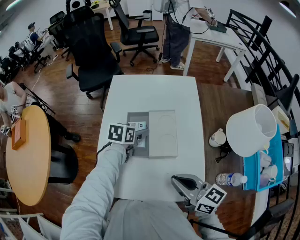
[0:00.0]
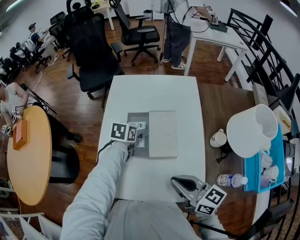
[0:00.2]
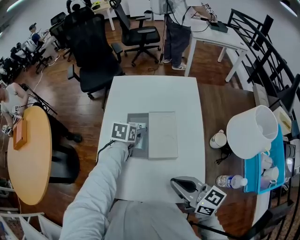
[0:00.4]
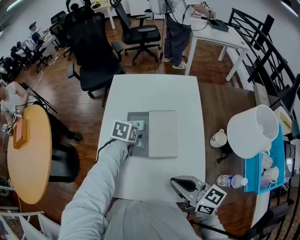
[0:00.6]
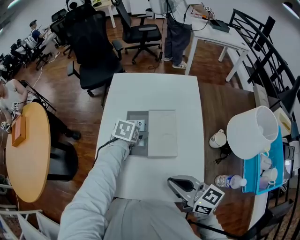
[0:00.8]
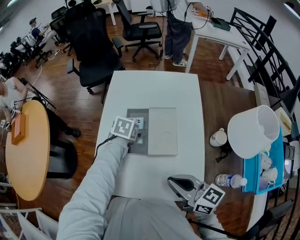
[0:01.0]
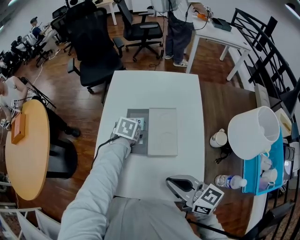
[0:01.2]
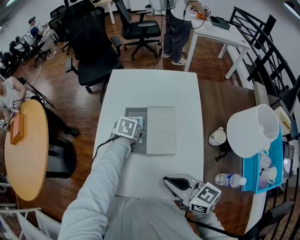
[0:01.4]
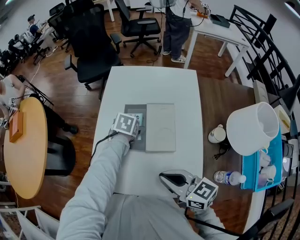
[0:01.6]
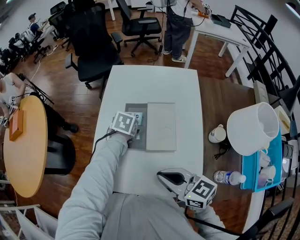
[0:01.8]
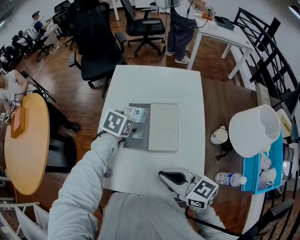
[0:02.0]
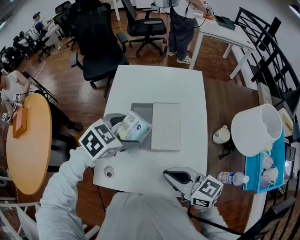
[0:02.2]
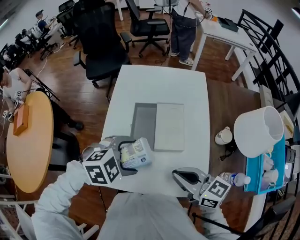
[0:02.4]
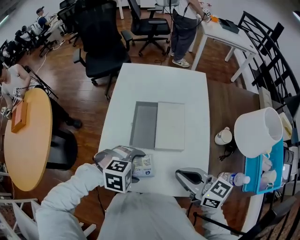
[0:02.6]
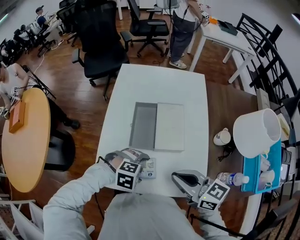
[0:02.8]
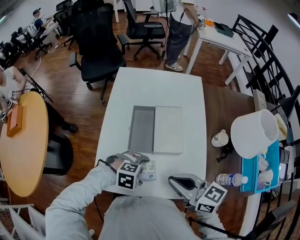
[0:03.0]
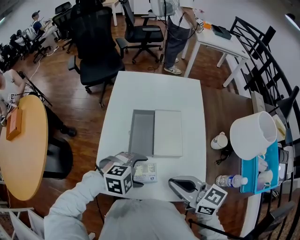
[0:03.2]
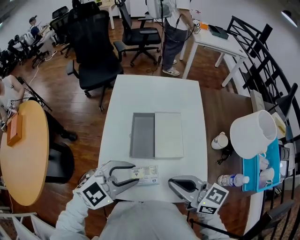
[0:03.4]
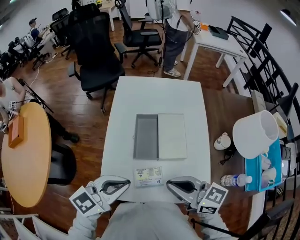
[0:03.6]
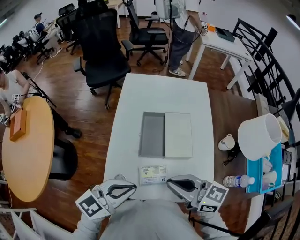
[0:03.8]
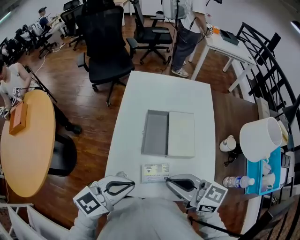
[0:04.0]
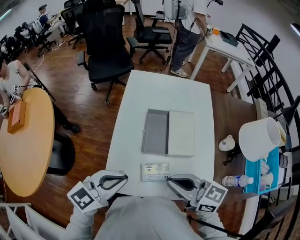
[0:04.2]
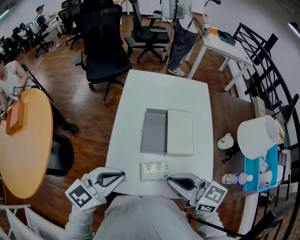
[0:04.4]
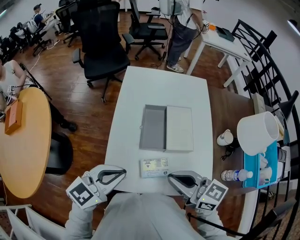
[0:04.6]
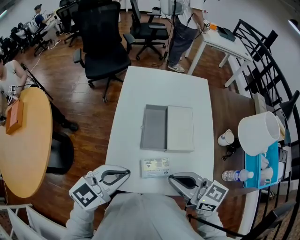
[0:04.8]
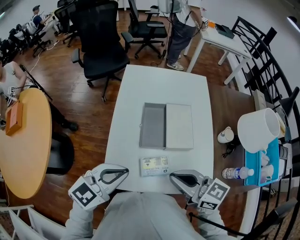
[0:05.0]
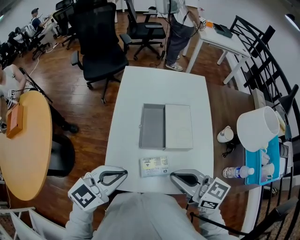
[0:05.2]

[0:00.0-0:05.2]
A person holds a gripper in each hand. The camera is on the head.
0:01.8 to 0:03.4: The left gripper goes up and down, approximately 20 cm each way, reversing 2 times, points its fingers approximately 40 degrees further upward, and closes.
0:03.4 to 0:05.2: The left gripper travels to the left by roughly 10 cm, and closes its fingers. The right gripper moves some 5 cm.

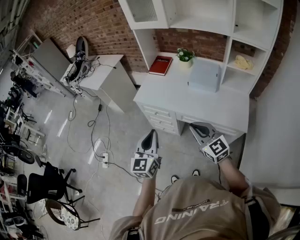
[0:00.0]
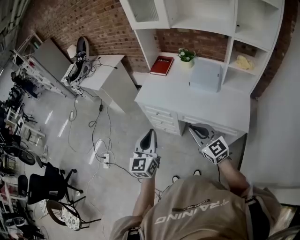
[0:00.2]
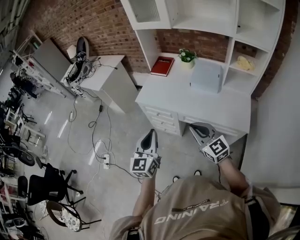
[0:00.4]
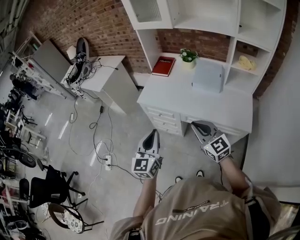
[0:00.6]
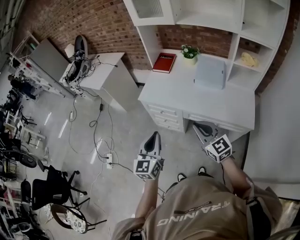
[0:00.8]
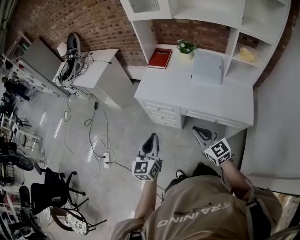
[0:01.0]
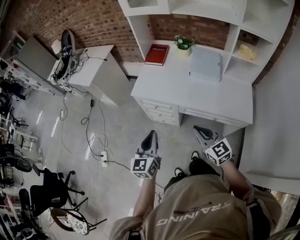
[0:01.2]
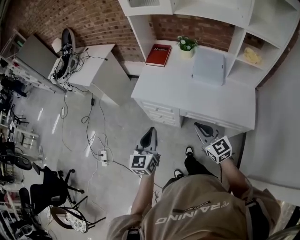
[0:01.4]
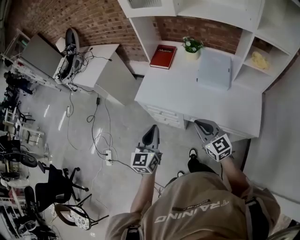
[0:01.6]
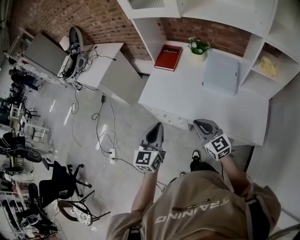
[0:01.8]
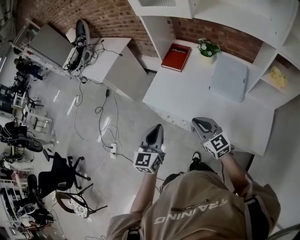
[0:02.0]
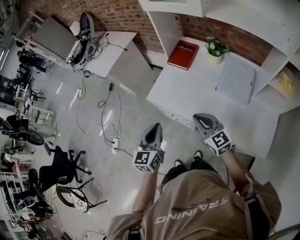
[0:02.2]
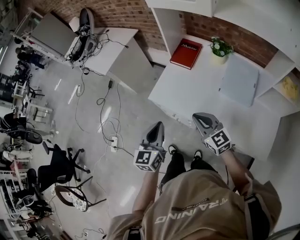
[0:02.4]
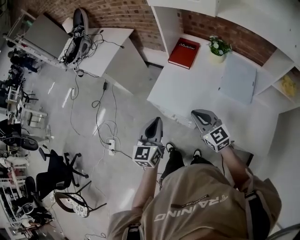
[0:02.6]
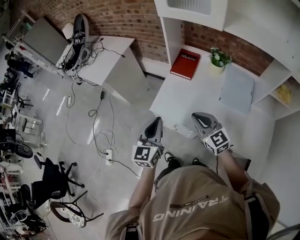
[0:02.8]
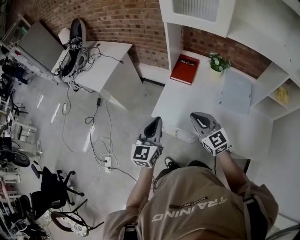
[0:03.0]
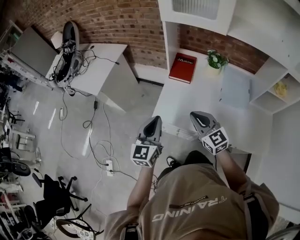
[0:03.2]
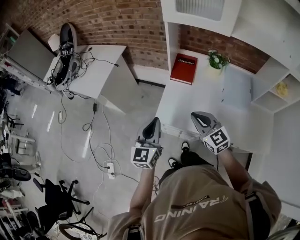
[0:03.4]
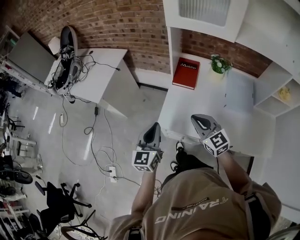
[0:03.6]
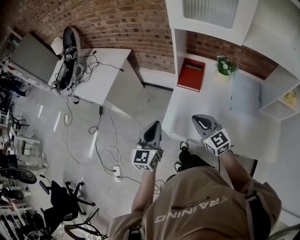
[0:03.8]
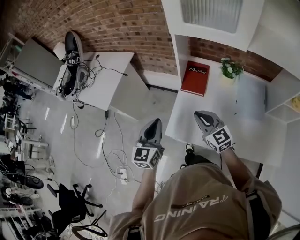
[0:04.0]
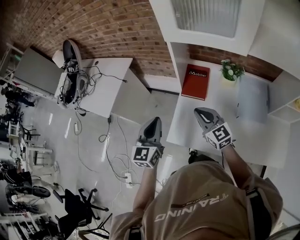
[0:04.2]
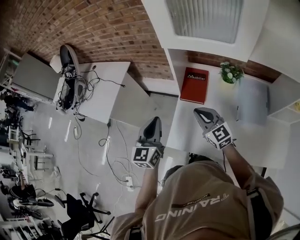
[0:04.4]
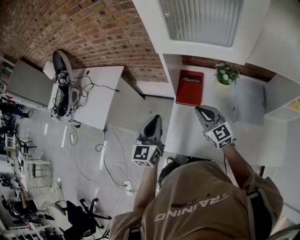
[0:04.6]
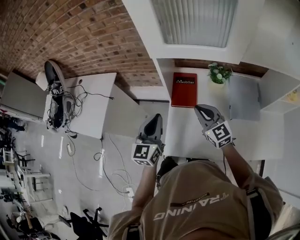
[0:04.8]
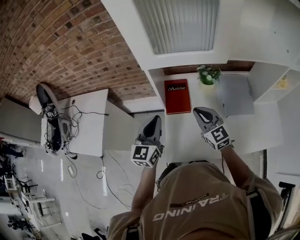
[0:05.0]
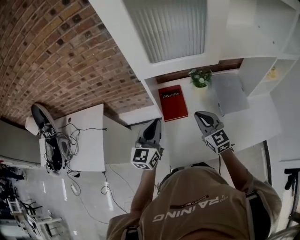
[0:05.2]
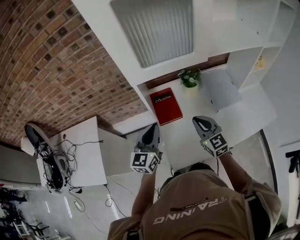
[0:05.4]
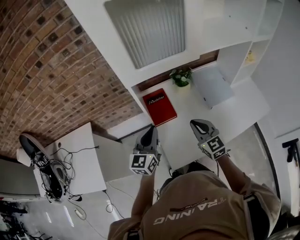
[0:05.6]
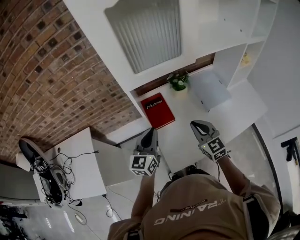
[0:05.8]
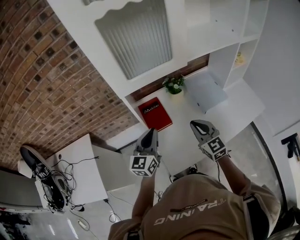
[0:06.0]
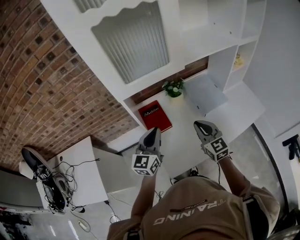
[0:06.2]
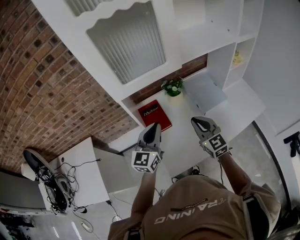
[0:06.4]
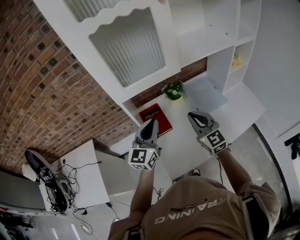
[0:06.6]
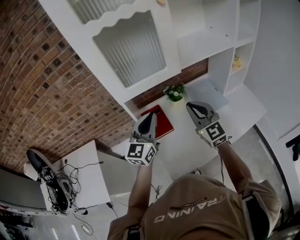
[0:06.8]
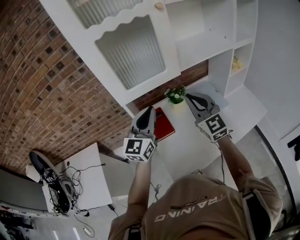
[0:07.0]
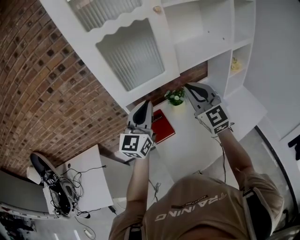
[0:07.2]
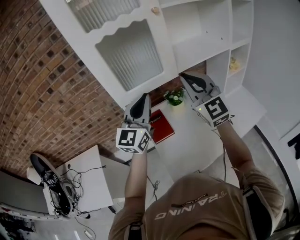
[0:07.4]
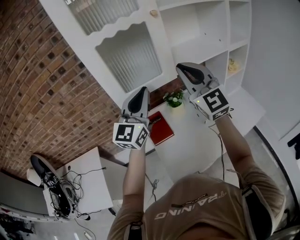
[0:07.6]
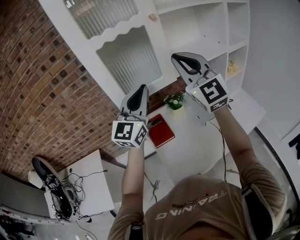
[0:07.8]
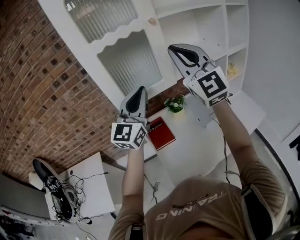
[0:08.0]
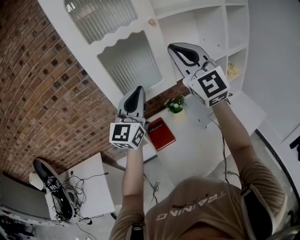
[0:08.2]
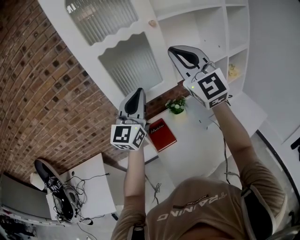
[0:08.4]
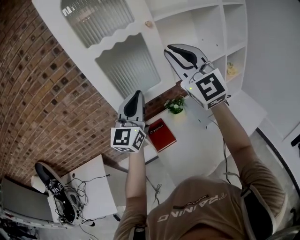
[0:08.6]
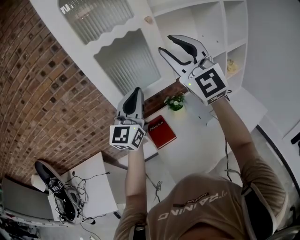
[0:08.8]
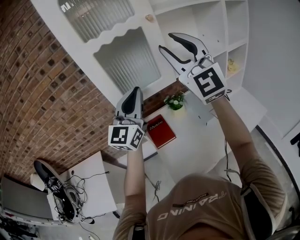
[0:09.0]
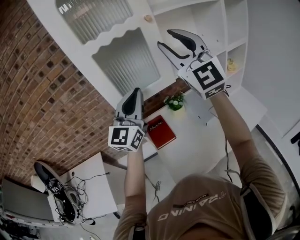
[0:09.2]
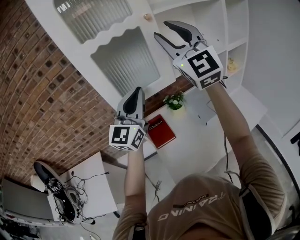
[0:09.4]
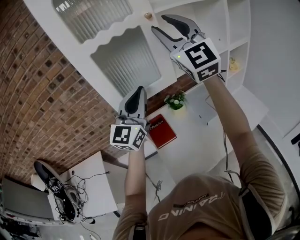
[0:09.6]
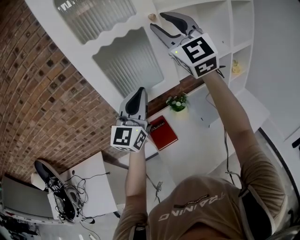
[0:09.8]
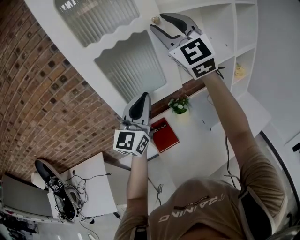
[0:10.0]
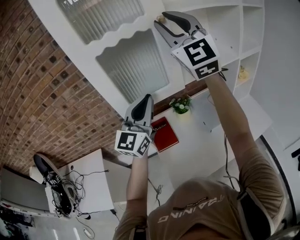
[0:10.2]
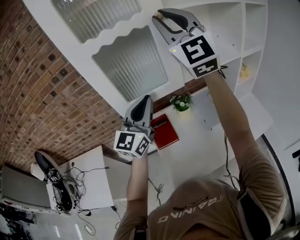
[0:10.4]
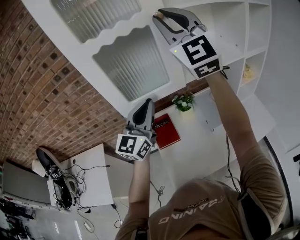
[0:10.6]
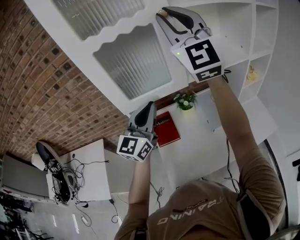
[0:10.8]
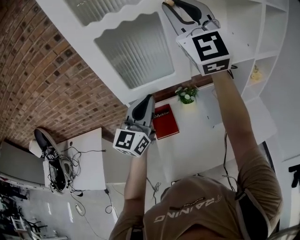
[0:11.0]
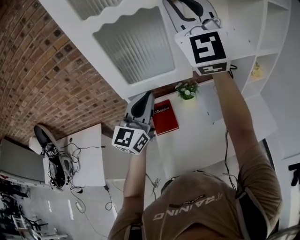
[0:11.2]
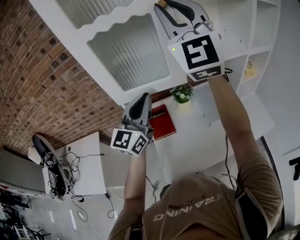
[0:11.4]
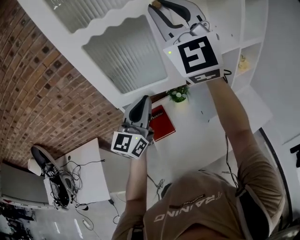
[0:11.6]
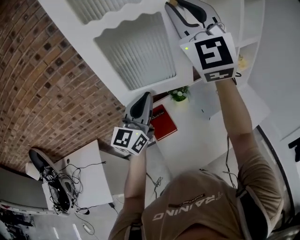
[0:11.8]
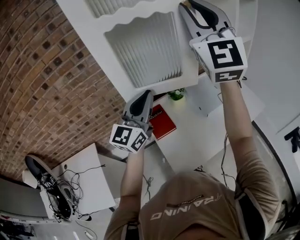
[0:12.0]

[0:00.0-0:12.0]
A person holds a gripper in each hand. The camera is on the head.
0:00.0 to 0:01.6: The right gripper goes roughly 15 cm forward and downward. Meanwhile the left gripper moves forward, some 15 cm.
0:01.6 to 0:03.0: Both grippers travel together forward and to the left, roughly 25 cm.
0:03.0 to 0:04.4: Both grippers move forward, about 25 cm.
0:04.4 to 0:06.0: The right gripper moves some 10 cm, and swivels roughly 50 degrees, while the left gripper changes place by roughly 10 cm, and changes its angle by roughly 40 degrees.
0:06.0 to 0:07.6: The two grippers go about 30 cm upward. The right gripper changes its angle by approximately 40 degrees, while the left gripper changes its angle by about 30 degrees.
0:07.6 to 0:09.0: The right gripper shifts about 10 cm upward, and opens up.
0:09.0 to 0:10.4: The right gripper heads forward and upward, covering some 10 cm; the left gripper moves approximately 5 cm.
0:10.4 to 0:12.0: The left gripper changes place by roughly 5 cm. The right gripper heads backward, covering roughly 10 cm.

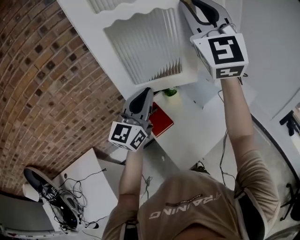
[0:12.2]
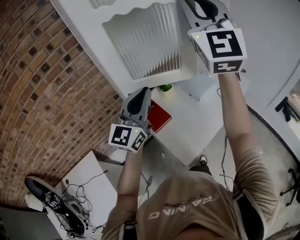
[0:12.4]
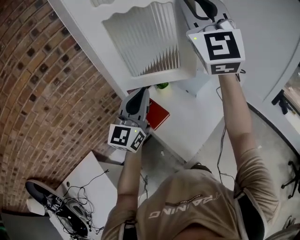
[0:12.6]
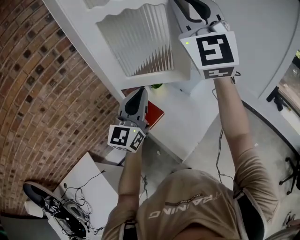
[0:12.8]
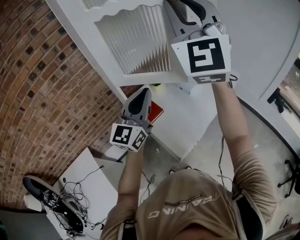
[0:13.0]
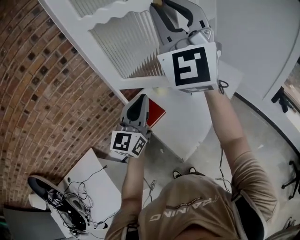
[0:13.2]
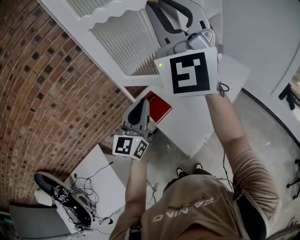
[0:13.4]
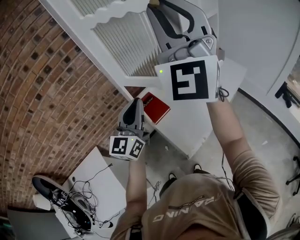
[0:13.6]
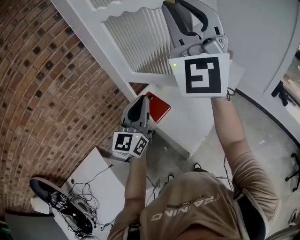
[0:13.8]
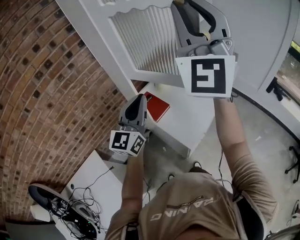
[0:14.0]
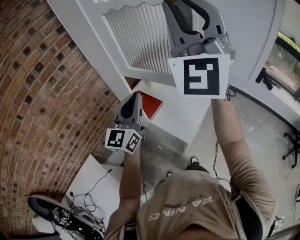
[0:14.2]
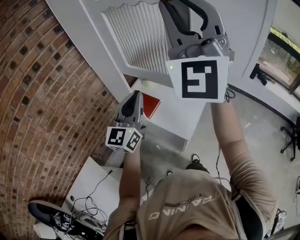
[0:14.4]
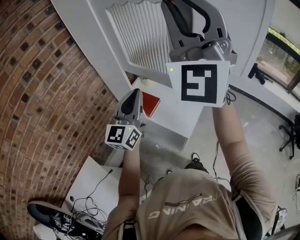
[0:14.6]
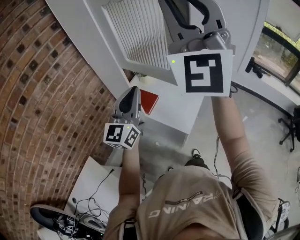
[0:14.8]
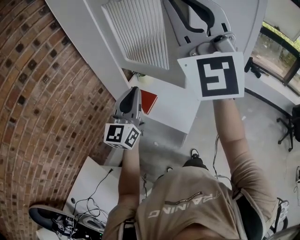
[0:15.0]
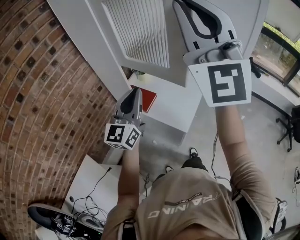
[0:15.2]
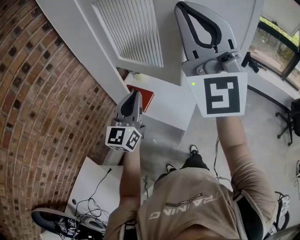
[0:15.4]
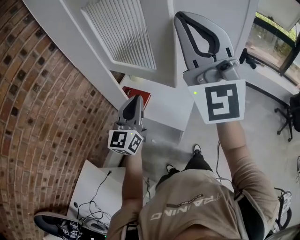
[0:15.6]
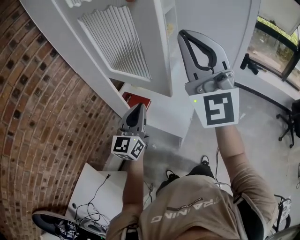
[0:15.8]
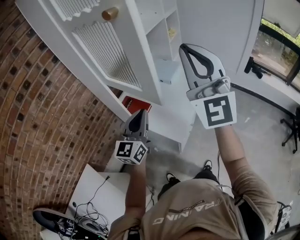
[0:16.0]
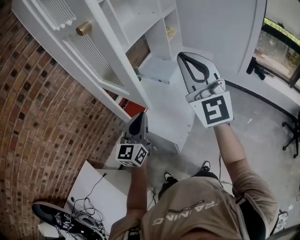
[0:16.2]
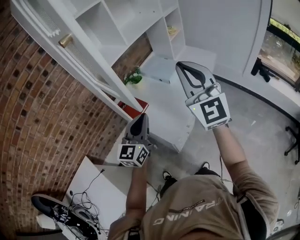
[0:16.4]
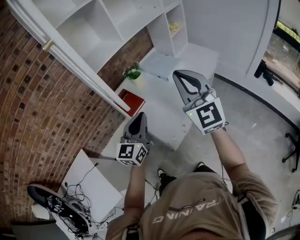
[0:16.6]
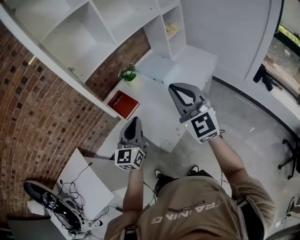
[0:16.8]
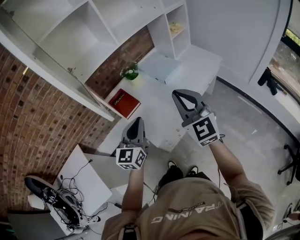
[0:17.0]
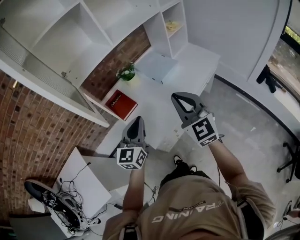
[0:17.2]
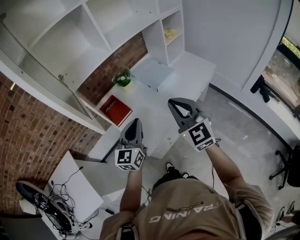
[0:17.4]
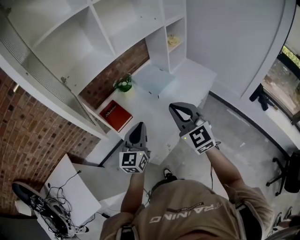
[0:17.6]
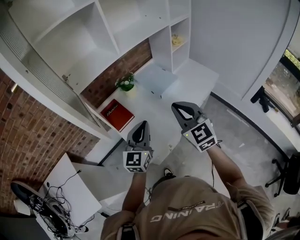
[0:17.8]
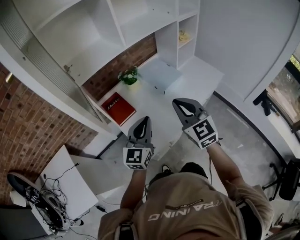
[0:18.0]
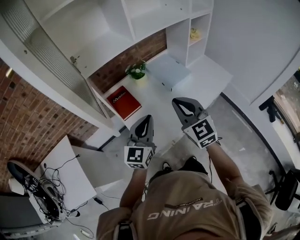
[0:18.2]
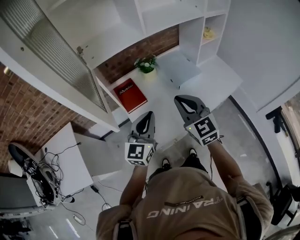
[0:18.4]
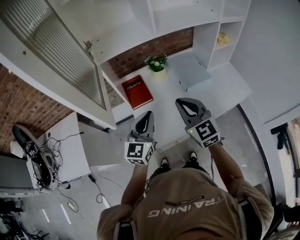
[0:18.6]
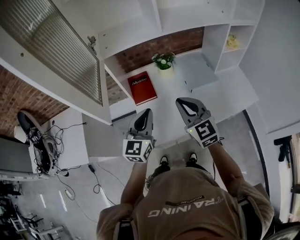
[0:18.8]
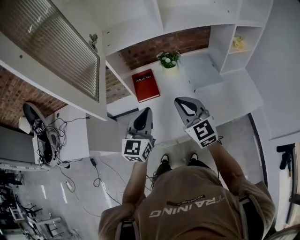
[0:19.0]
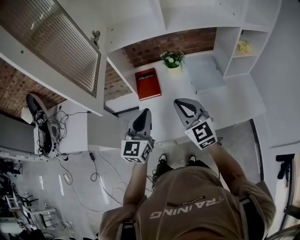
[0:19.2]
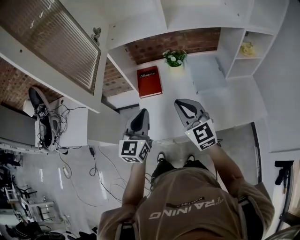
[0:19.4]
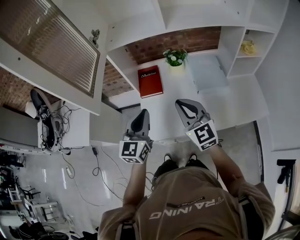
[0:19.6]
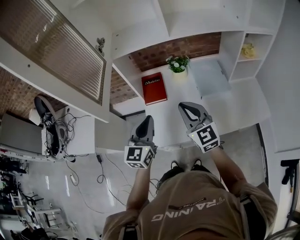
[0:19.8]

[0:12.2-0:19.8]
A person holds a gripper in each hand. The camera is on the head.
0:12.2 to 0:13.8: The grippers both shift backward by roughly 15 cm.
0:13.8 to 0:15.2: The left gripper shifts about 10 cm to the left and backward. The right gripper goes some 15 cm backward and to the left.
0:15.2 to 0:16.8: The right gripper shifts about 35 cm downward and to the right, and tilts its fingers roughly 30 degrees downward. Meanwhile the left gripper moves to the right and downward, some 25 cm, and rotates some 20 degrees.
0:16.8 to 0:18.2: The right gripper goes some 15 cm forward and downward, while the left gripper shifts about 10 cm forward.
0:18.2 to 0:19.8: The right gripper ends up approximately 5 cm from where it was, and changes its angle by approximately 30 degrees. Meanwhile the left gripper turns by approximately 30 degrees.
